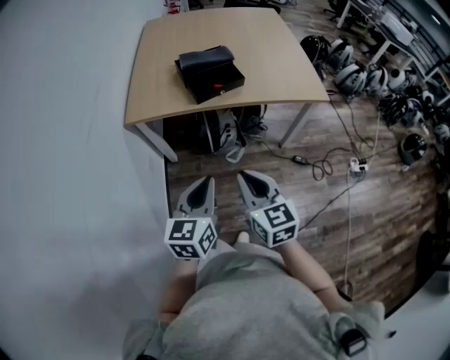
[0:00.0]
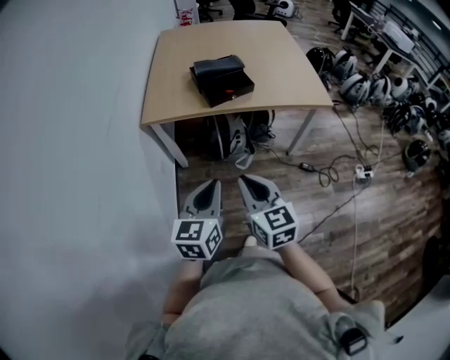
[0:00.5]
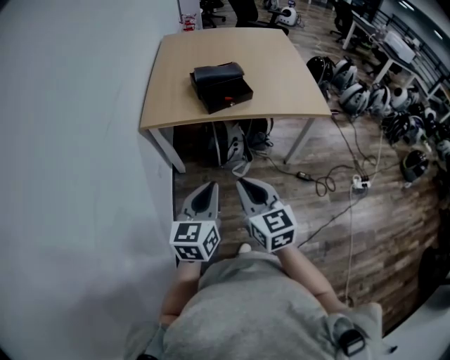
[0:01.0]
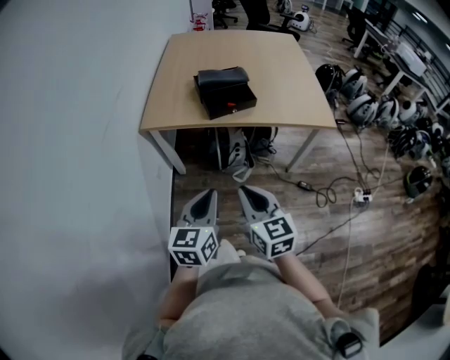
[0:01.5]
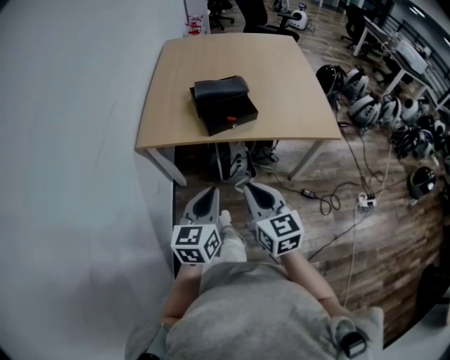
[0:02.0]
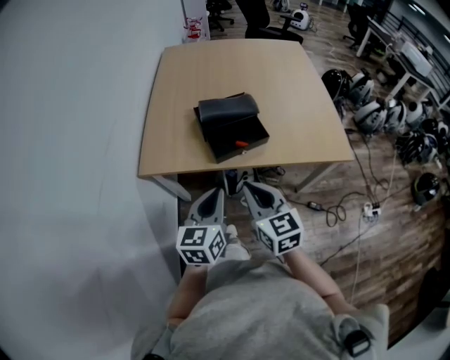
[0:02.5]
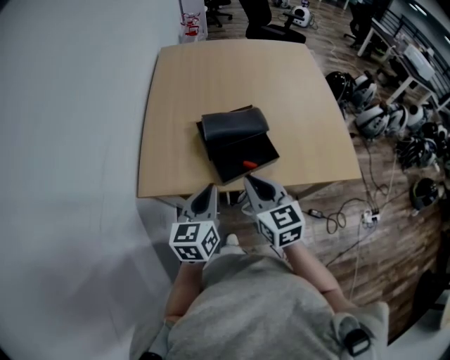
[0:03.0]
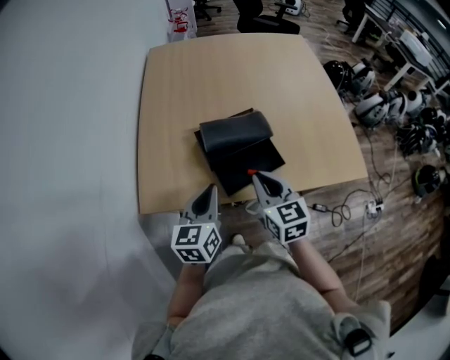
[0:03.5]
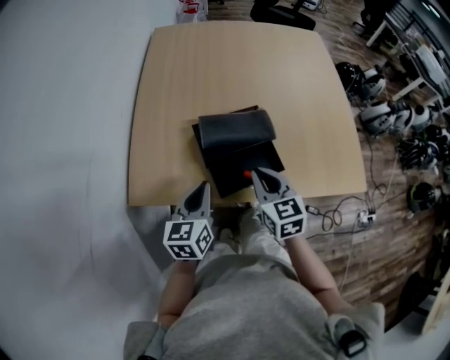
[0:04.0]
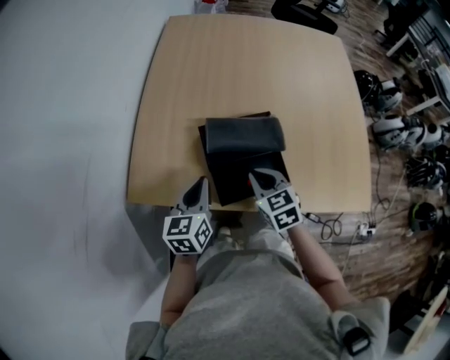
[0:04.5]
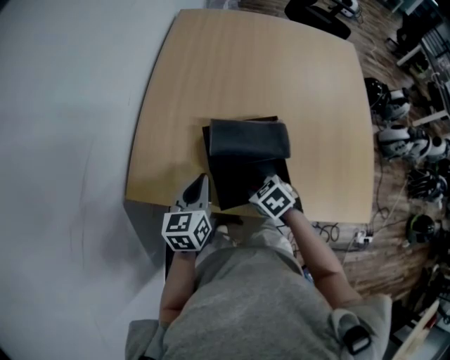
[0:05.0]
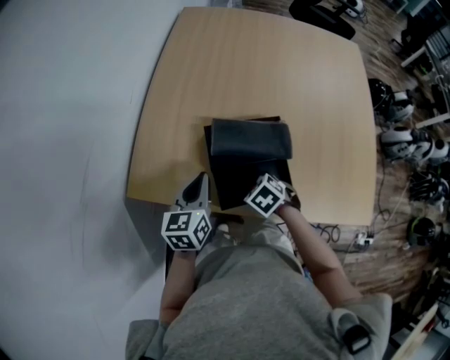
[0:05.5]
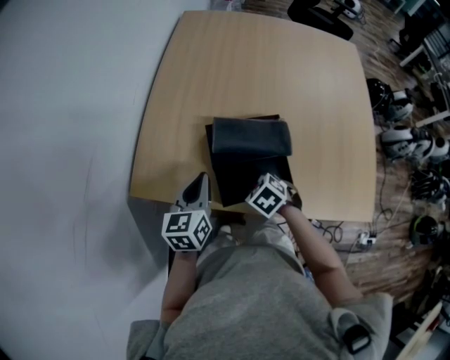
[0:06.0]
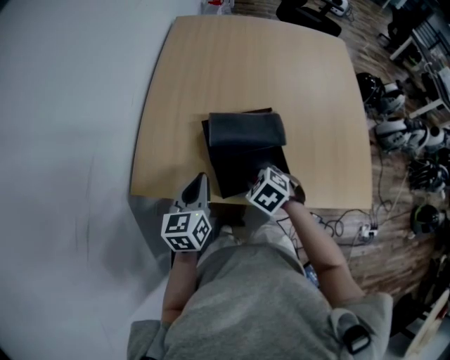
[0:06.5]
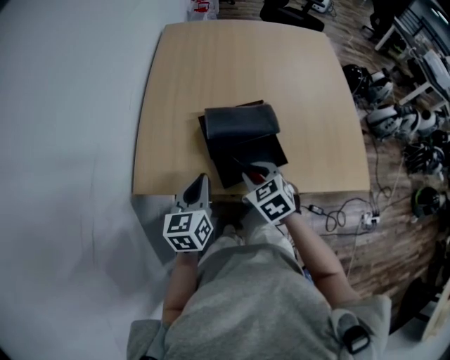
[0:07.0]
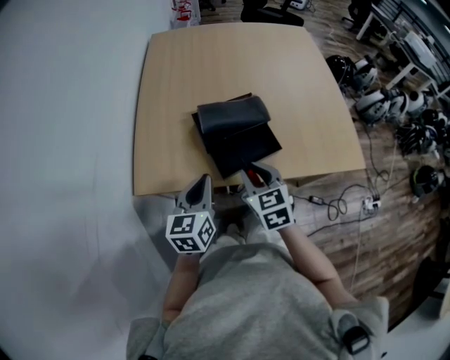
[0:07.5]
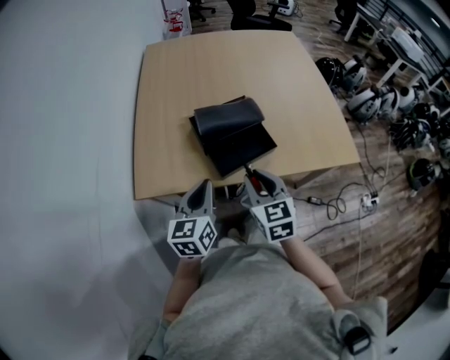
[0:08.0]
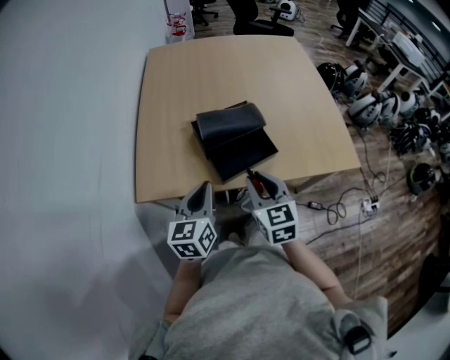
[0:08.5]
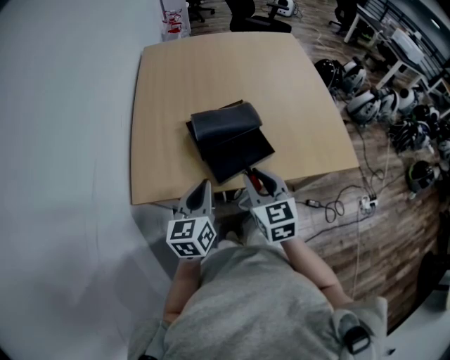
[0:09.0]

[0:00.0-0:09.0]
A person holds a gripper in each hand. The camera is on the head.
0.0 to 2.0 s: The two grippers go approximately 5 cm forward.
2.0 to 4.5 s: The two grippers travel together, forward, about 40 cm. The right gripper rotates about 30 degrees.
4.5 to 7.0 s: Both grippers travel together backward, roughly 5 cm. The right gripper goes downward and returns, roughly 10 cm each way.
7.0 to 9.0 s: The left gripper shifts by some 5 cm. The right gripper shifts about 10 cm upward and backward, and turns by roughly 30 degrees.

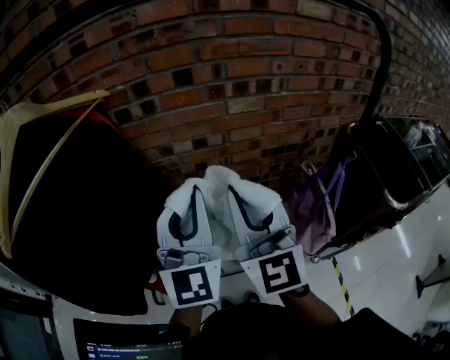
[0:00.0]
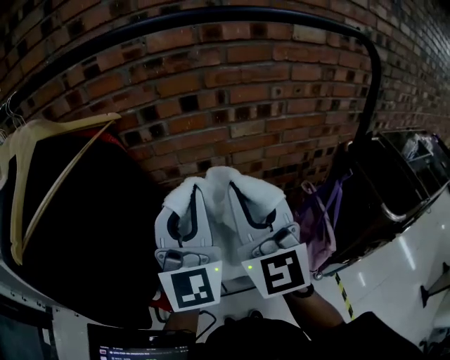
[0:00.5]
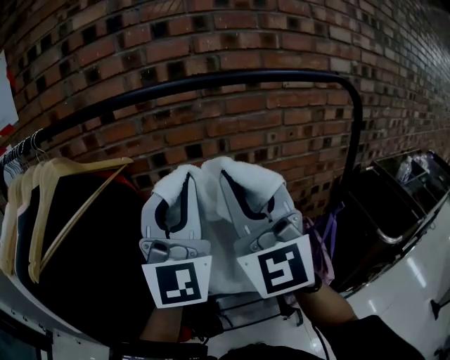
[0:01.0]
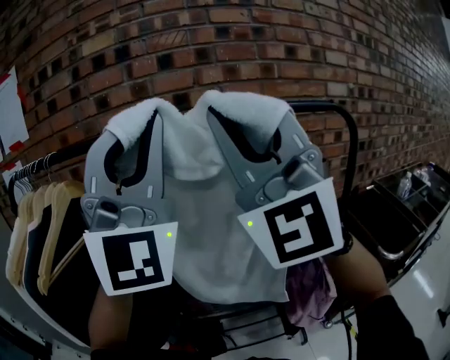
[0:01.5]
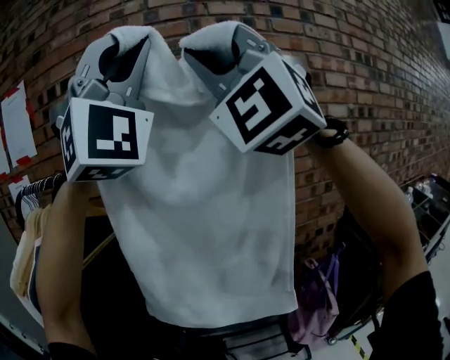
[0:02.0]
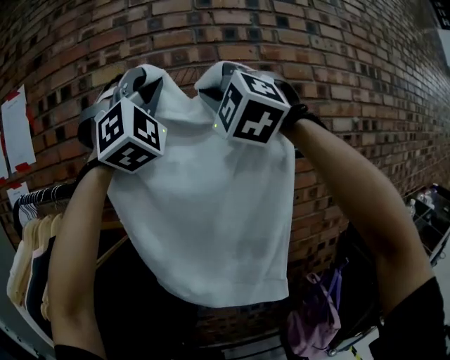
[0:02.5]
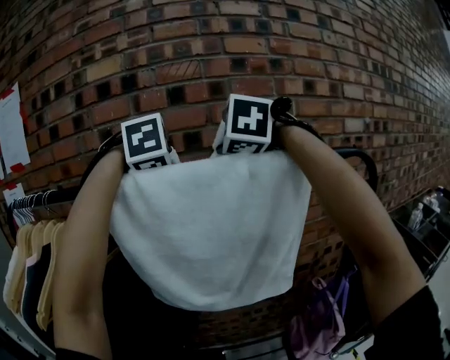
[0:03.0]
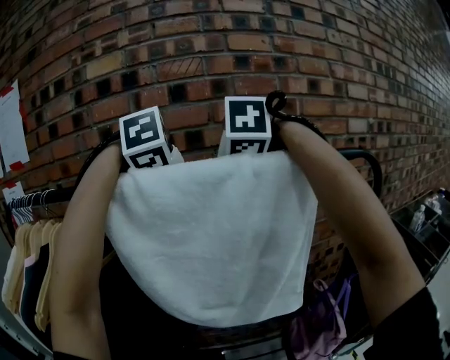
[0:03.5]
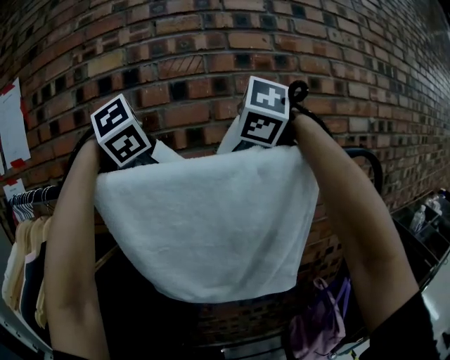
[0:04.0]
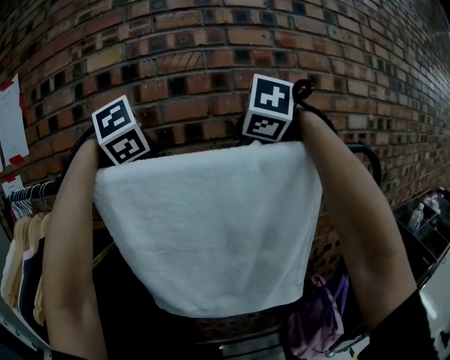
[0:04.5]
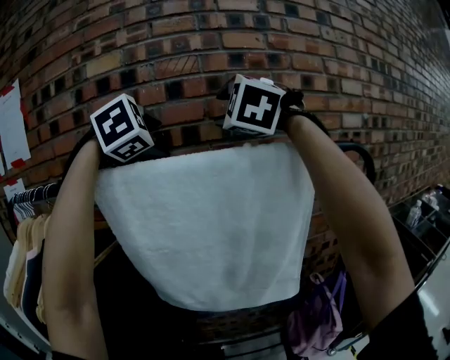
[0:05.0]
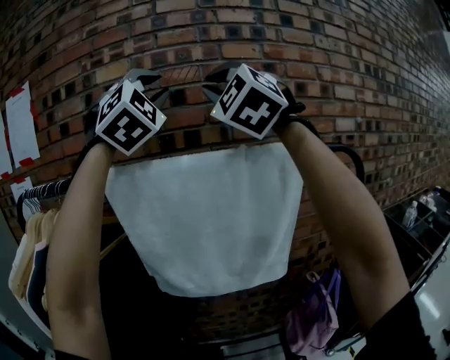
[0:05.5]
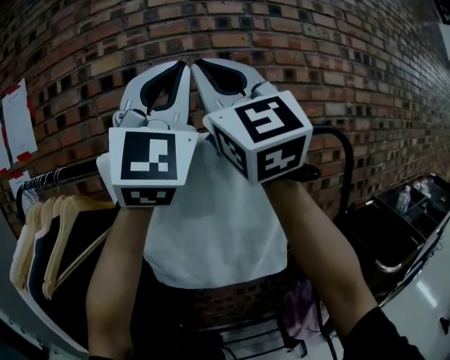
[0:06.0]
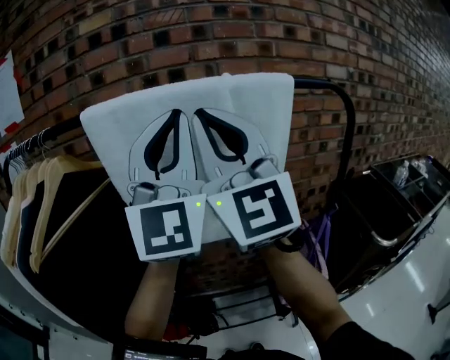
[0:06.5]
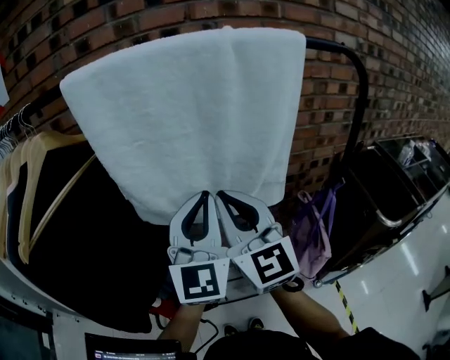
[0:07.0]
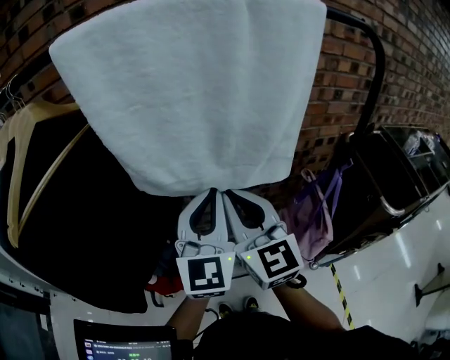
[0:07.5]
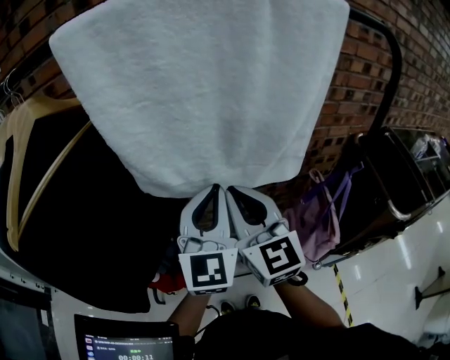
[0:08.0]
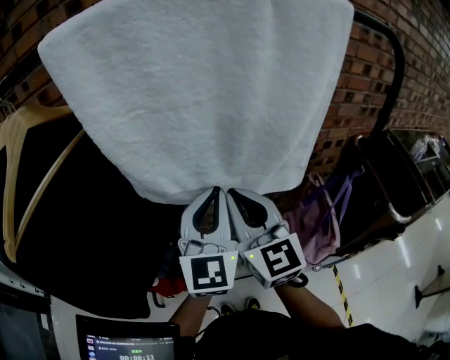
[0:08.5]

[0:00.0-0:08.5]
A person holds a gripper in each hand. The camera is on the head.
0.0 to 2.0 s: The grippers both shift upward by approximately 50 cm. The left gripper rotates around the line of its fingers by some 60 degrees, clockwise from behind. The right gripper rolls counterclockwise, seen from behind, by approximately 60 degrees.
2.0 to 4.0 s: The grippers both shift forward and downward by about 30 cm. The right gripper angles its fingers downward, by about 70 degrees, and opens up; the left gripper points its fingers approximately 90 degrees further downward, and opens its fingers.
4.0 to 6.5 s: Both grippers move backward, some 20 cm. The right gripper tilts its fingers roughly 80 degrees upward, and closes. Meanwhile the left gripper tilts its fingers some 90 degrees upward, and closes its fingers.
6.5 to 8.5 s: The two grippers go roughly 30 cm downward. The right gripper rotates roughly 40 degrees, while the left gripper tilts its fingers about 30 degrees downward.

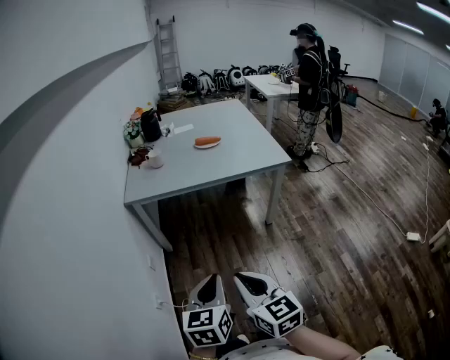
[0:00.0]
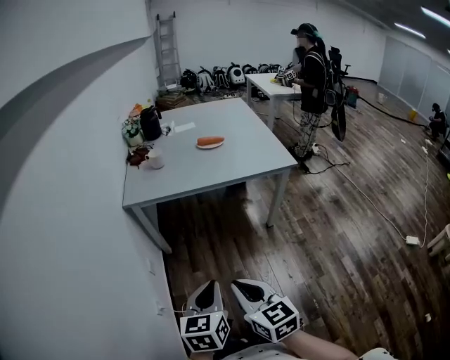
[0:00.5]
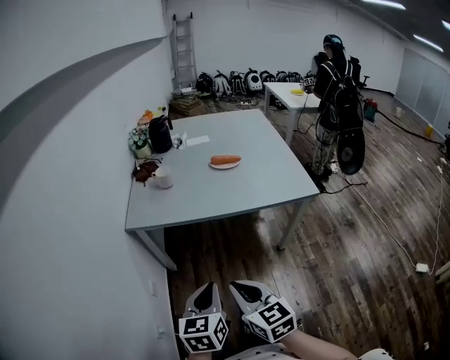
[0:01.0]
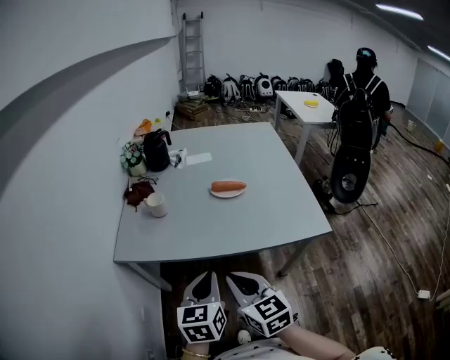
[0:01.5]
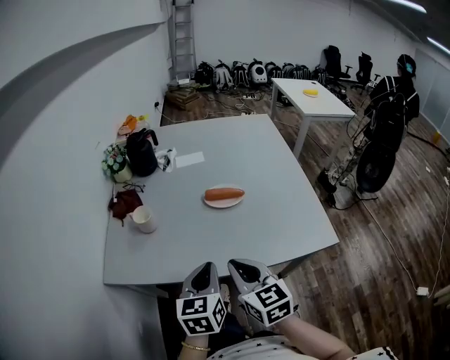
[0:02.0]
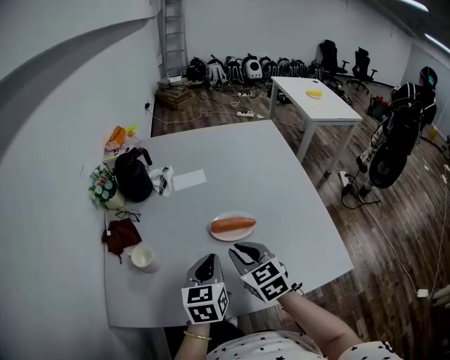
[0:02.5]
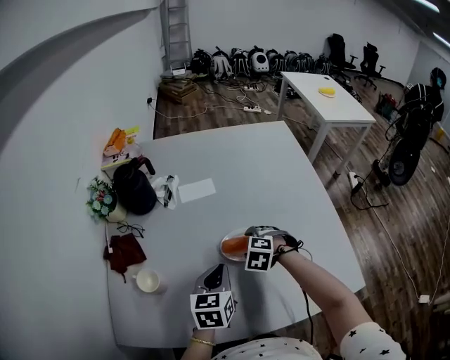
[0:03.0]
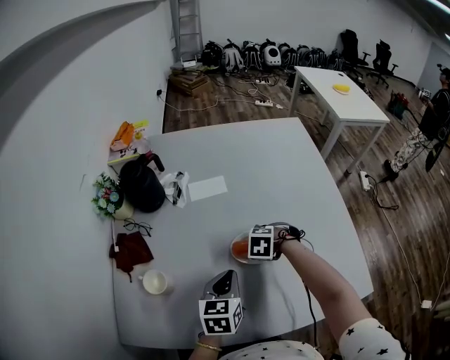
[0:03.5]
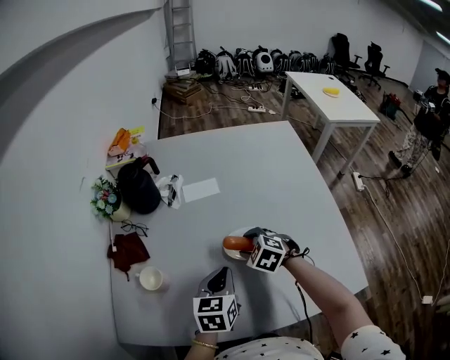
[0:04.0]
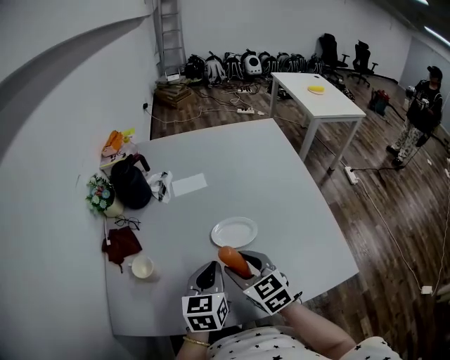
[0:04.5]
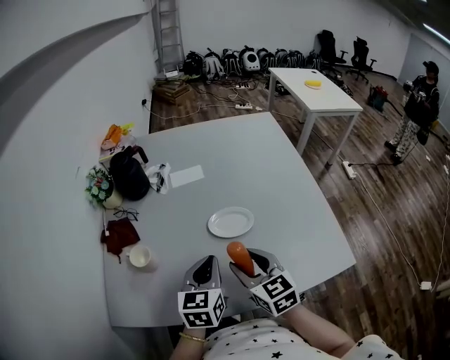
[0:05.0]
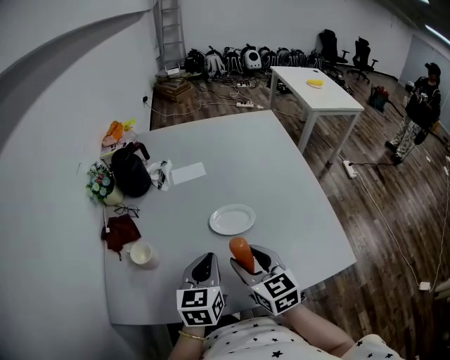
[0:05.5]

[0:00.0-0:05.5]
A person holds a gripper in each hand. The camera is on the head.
0.0 to 2.0 s: The two grippers travel together, forward, about 40 cm.
2.0 to 3.5 s: The right gripper changes place by some 35 cm, tips its fingers downward by approximately 60 degrees, and opens. Meanwhile the left gripper ends up roughly 20 cm from where it was.
3.5 to 5.5 s: The right gripper goes roughly 15 cm upward, and tips its fingers upward by roughly 60 degrees, while the left gripper shifts roughly 5 cm upward.

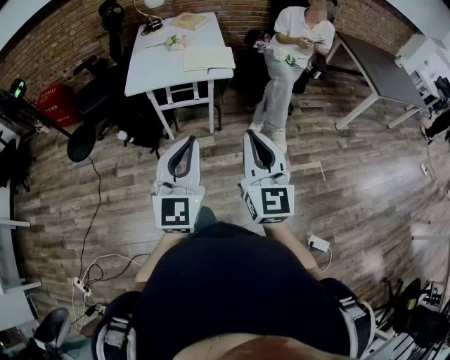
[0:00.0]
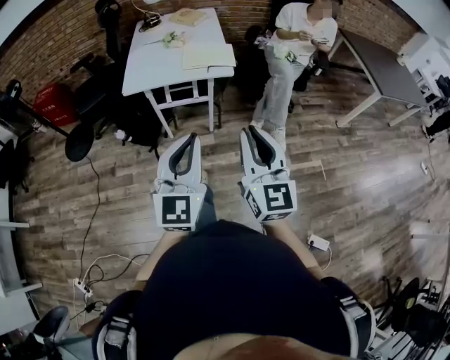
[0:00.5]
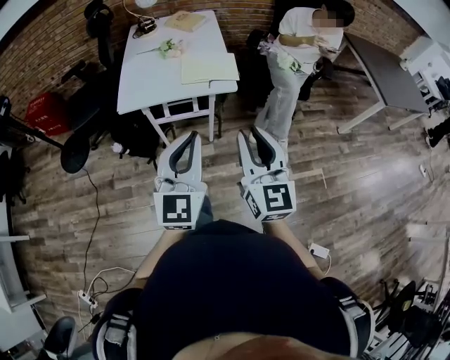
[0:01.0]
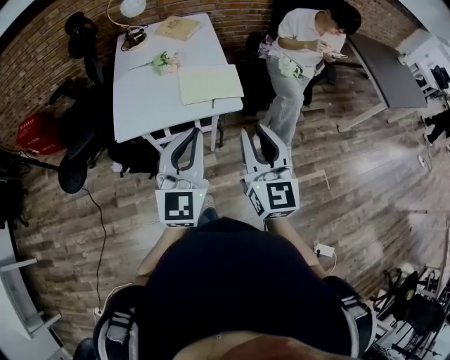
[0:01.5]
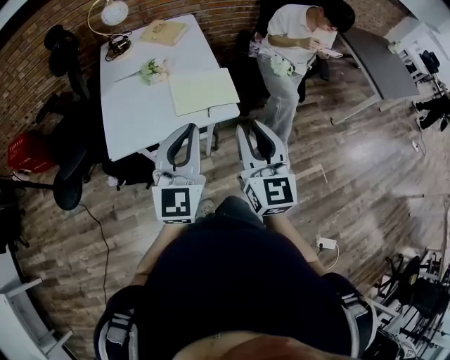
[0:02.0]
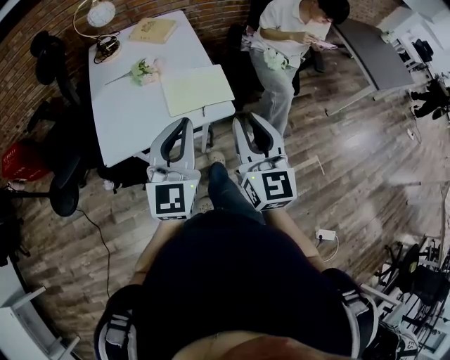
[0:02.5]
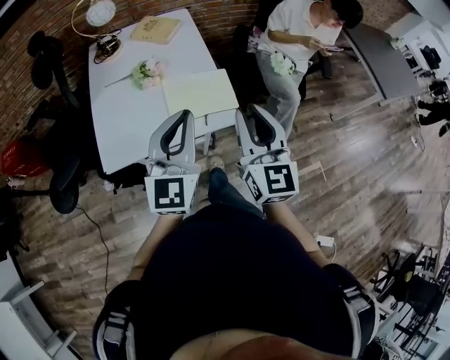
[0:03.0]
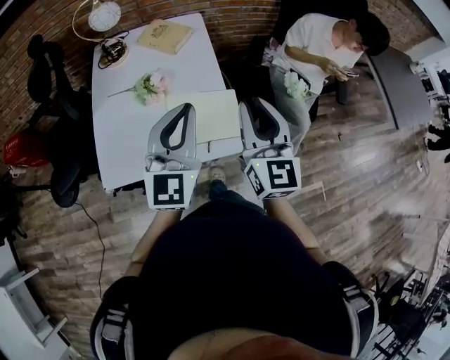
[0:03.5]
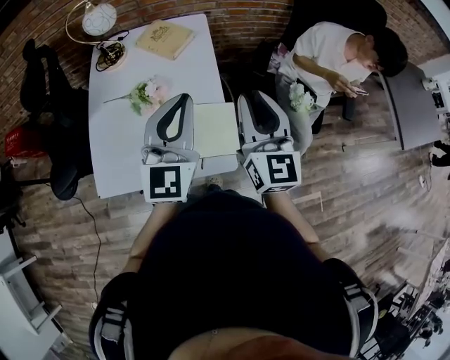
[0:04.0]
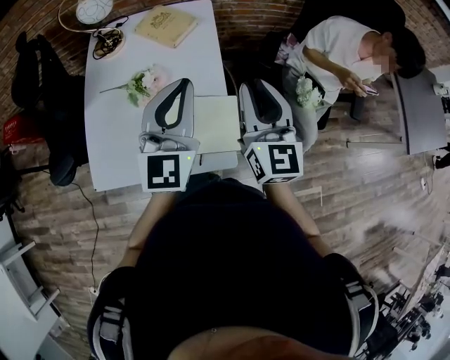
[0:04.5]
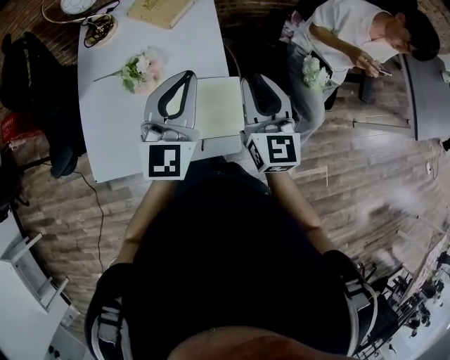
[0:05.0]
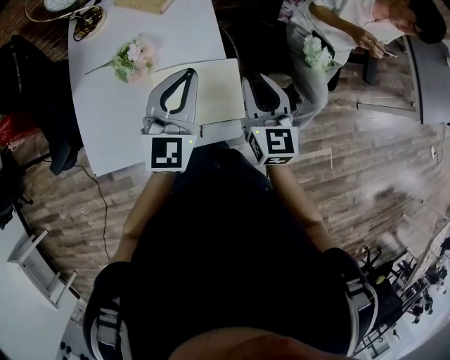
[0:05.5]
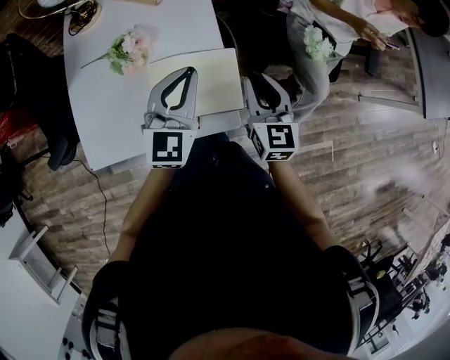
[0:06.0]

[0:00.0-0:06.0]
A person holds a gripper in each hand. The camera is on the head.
0.0 to 2.0 s: Both grippers move forward, approximately 35 cm.
2.0 to 4.0 s: Both grippers travel together forward, approximately 30 cm.
4.0 to 6.0 s: Both grippers move downward, some 15 cm.
